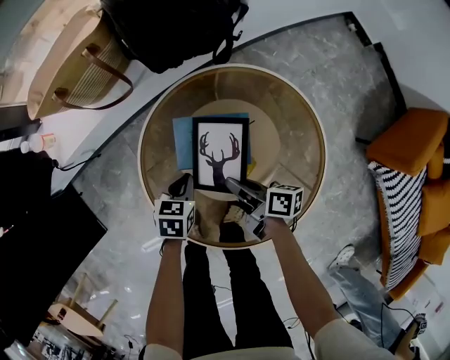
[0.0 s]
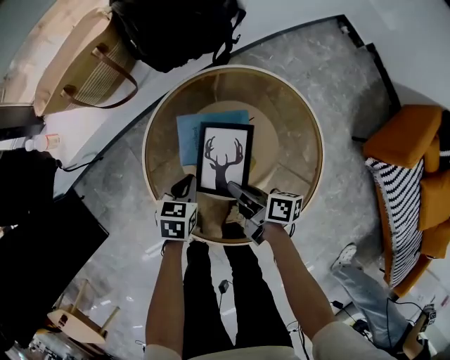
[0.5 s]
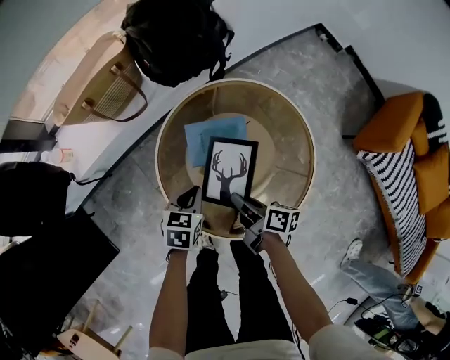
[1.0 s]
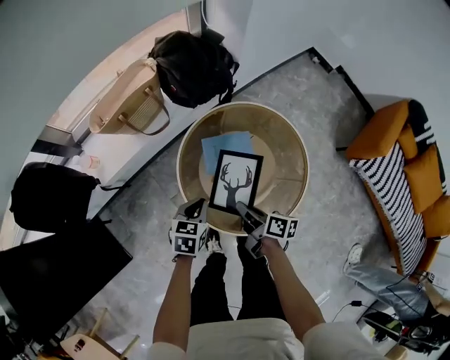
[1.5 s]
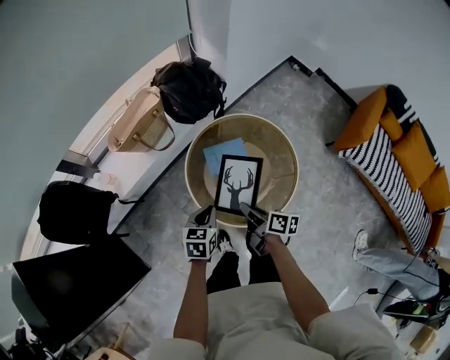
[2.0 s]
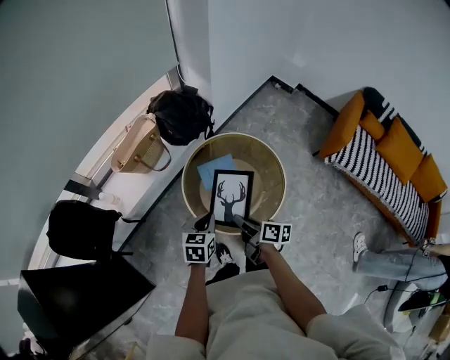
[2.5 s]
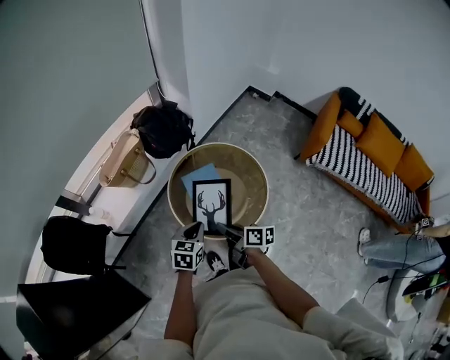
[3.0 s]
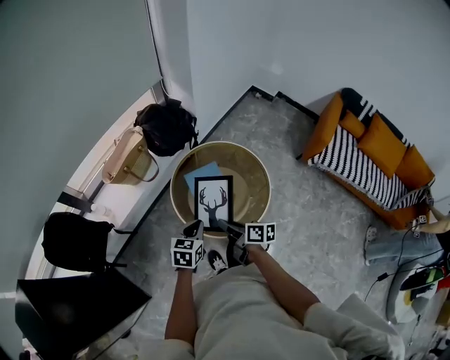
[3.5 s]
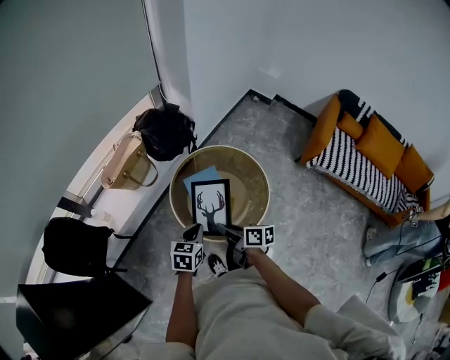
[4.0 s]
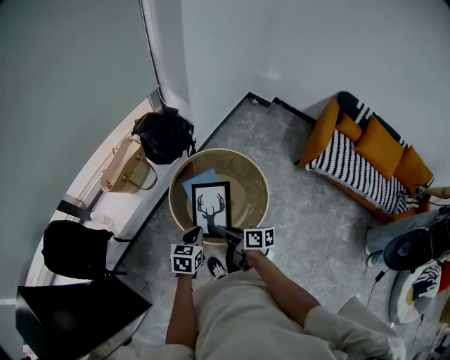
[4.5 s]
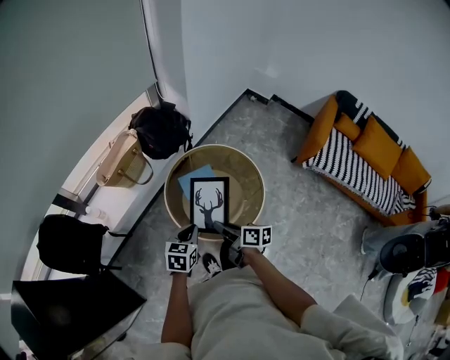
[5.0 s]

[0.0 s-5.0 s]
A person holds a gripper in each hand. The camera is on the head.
0.0 to 2.5 s: The grippers both shift upward and backward by about 40 cm. The left gripper rotates roughly 30 degrees. The right gripper turns by about 30 degrees.
2.5 to 5.0 s: There are only small adjustments of the grippers.

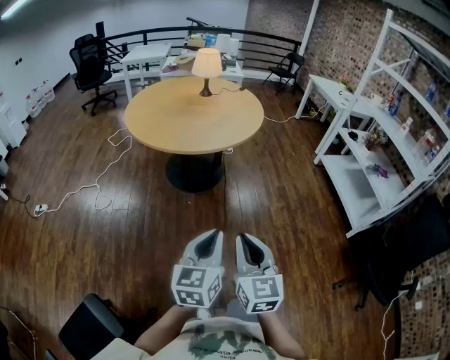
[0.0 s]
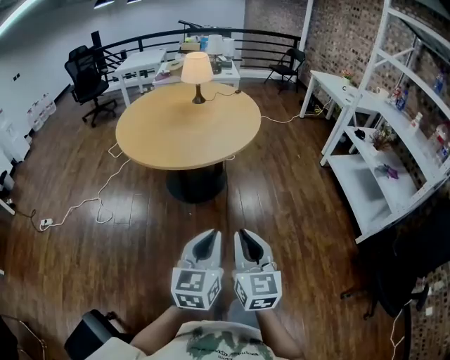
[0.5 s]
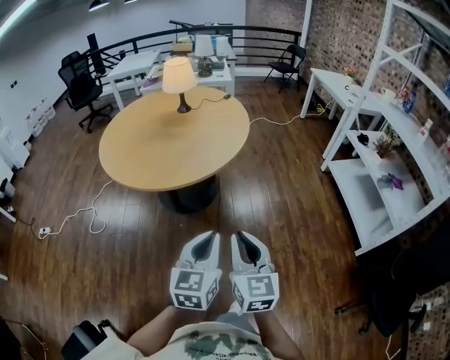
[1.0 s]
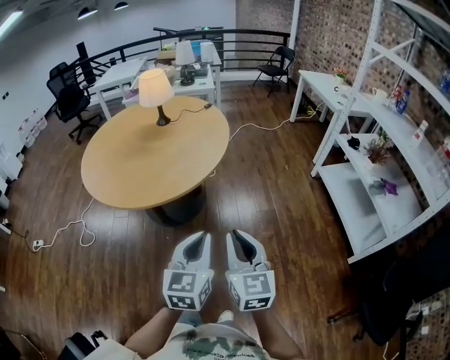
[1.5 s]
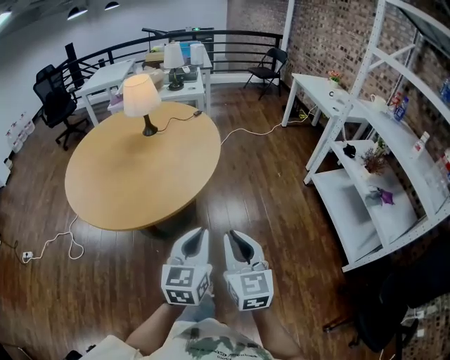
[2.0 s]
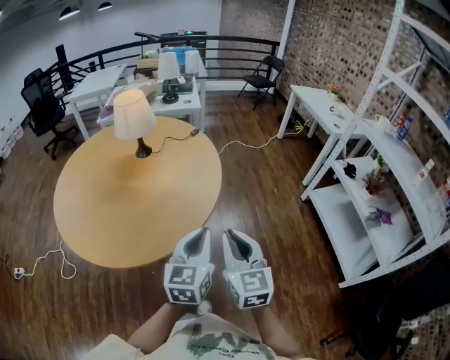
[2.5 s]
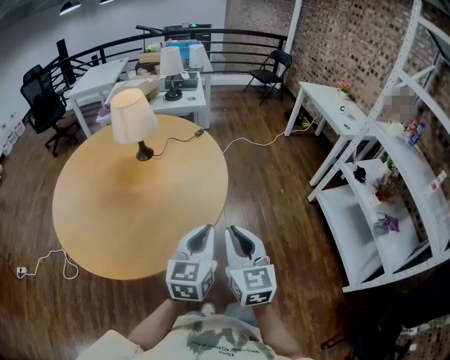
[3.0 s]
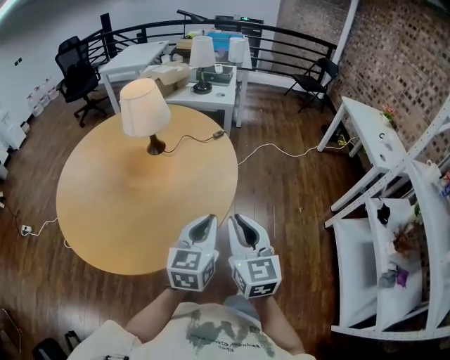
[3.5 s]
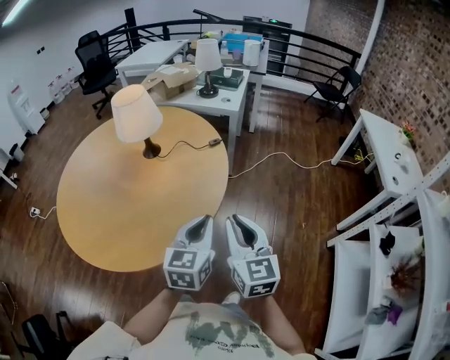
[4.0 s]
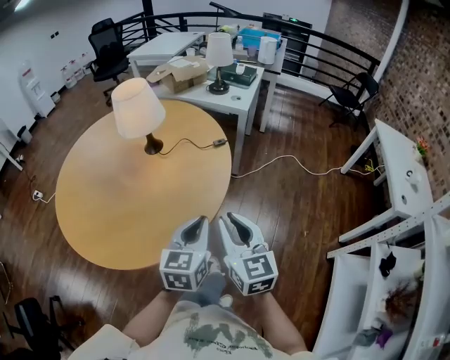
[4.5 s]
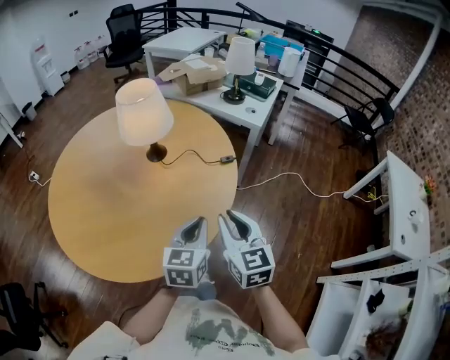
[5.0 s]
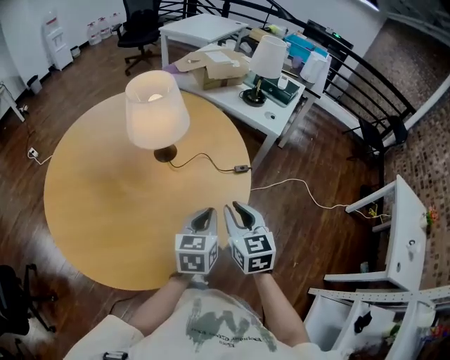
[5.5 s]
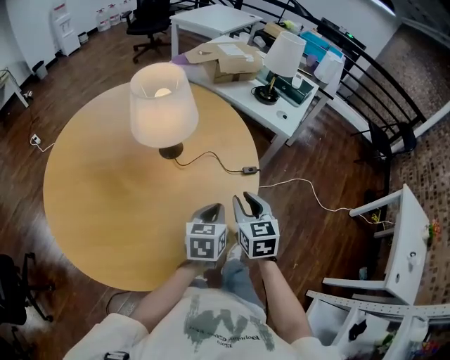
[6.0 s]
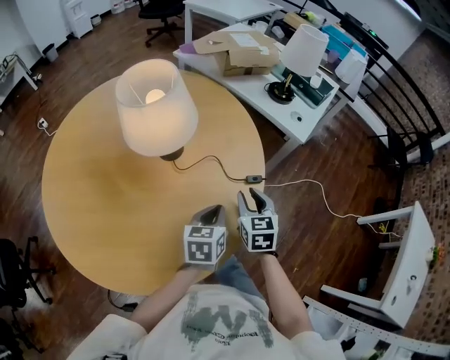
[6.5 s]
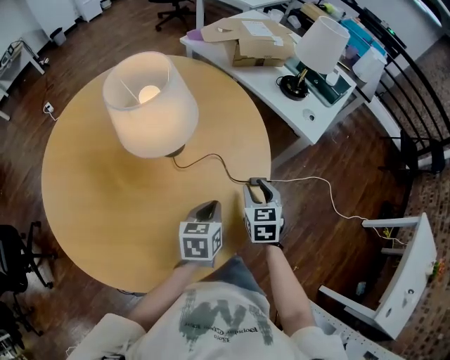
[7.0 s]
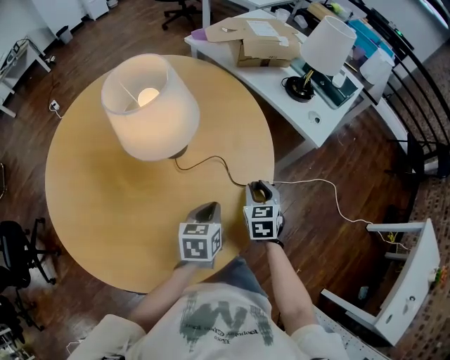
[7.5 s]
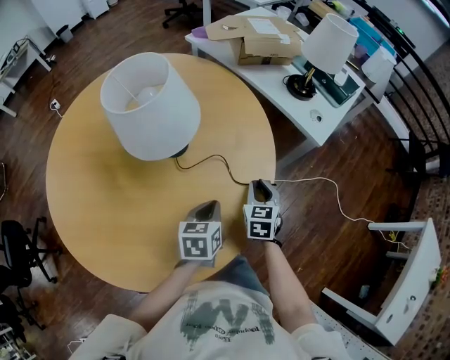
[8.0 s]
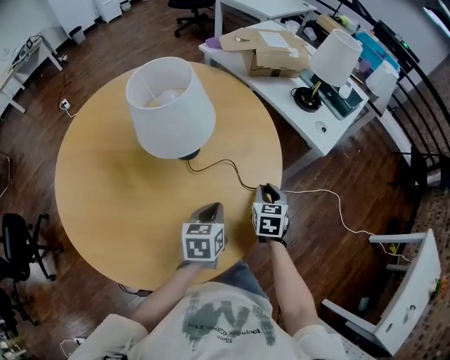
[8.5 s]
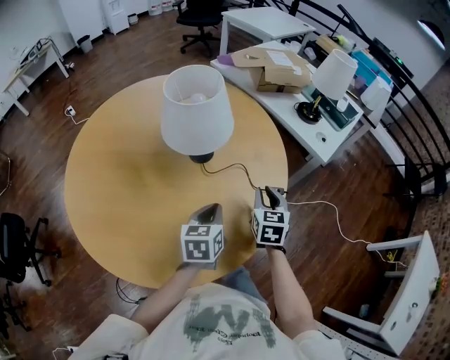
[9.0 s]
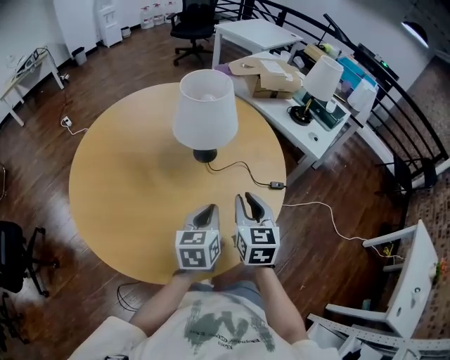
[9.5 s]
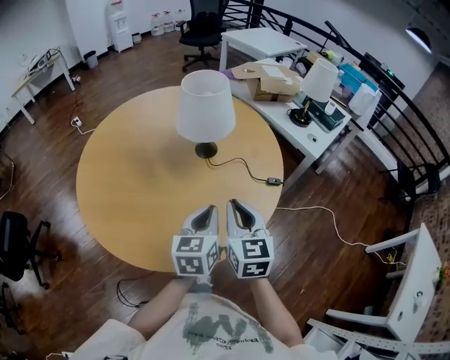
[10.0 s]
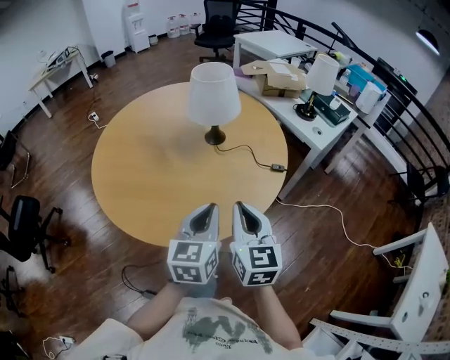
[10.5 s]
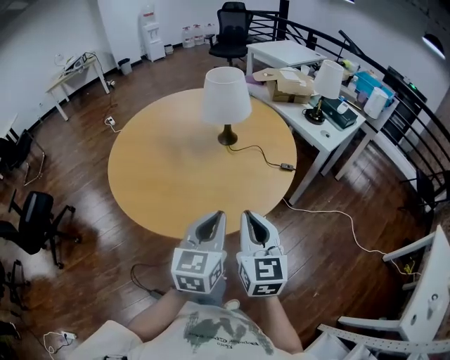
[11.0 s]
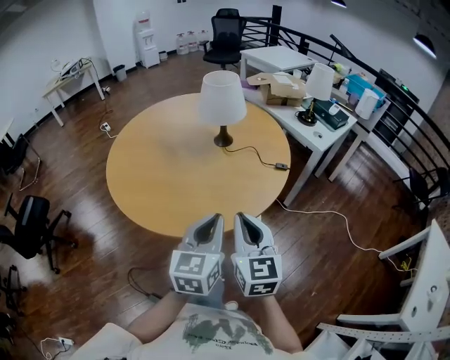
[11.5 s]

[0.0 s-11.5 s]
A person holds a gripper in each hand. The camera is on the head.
0.0 to 2.0 s: Both grippers are carried forward and to the right, approximately 50 cm.
2.0 to 4.0 s: The two grippers travel together, forward, approximately 40 cm. The right gripper changes its angle by about 20 degrees.
4.0 to 6.0 s: Both grippers travel together forward and downward, approximately 35 cm. The right gripper swivels roughly 30 degrees. Meanwhile the left gripper changes its angle by approximately 30 degrees.
6.0 to 7.5 s: The right gripper shifts roughly 20 cm forward and downward. Meanwhile the left gripper travels forward and downward by about 10 cm.
7.5 to 9.5 s: Both grippers travel together upward, to the left and backward, about 20 cm. The right gripper rotates approximately 20 degrees.
9.5 to 11.5 s: The right gripper travels backward by some 25 cm. Meanwhile the left gripper goes approximately 30 cm backward and upward, and turns by about 20 degrees.

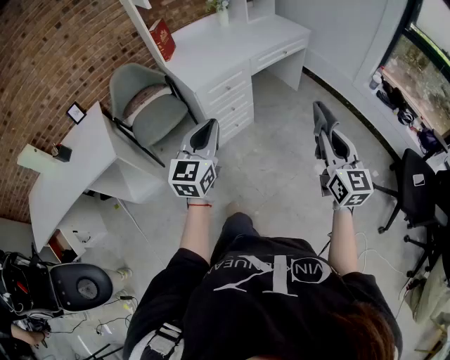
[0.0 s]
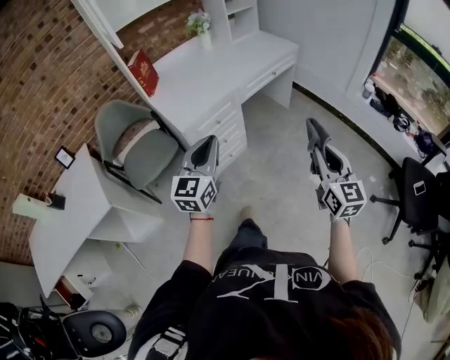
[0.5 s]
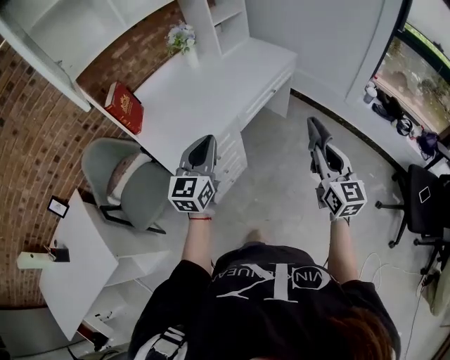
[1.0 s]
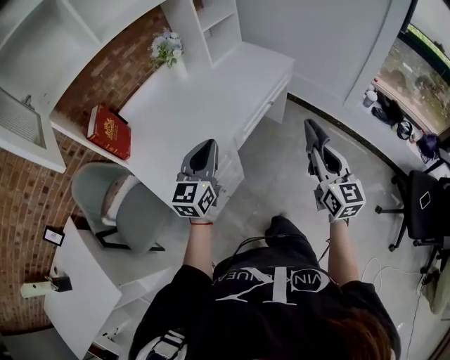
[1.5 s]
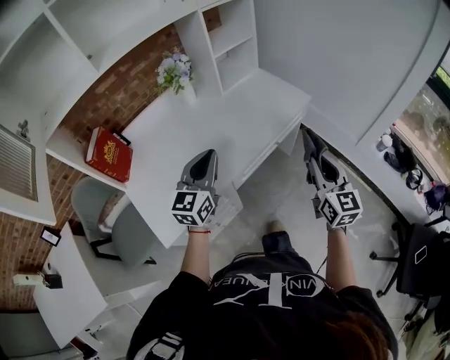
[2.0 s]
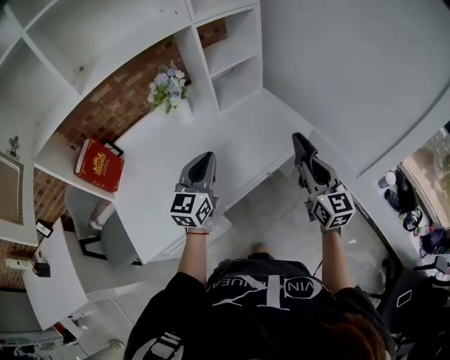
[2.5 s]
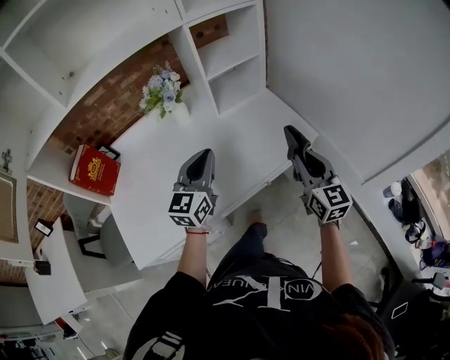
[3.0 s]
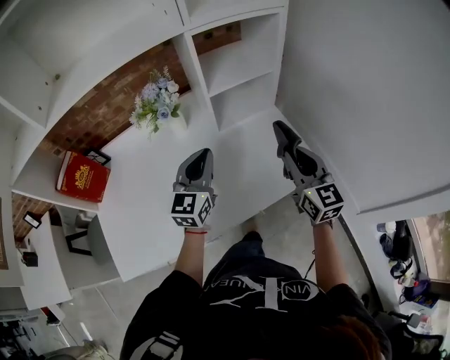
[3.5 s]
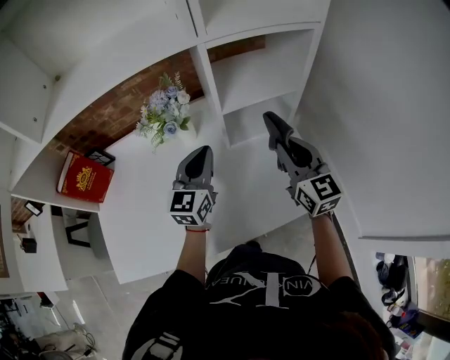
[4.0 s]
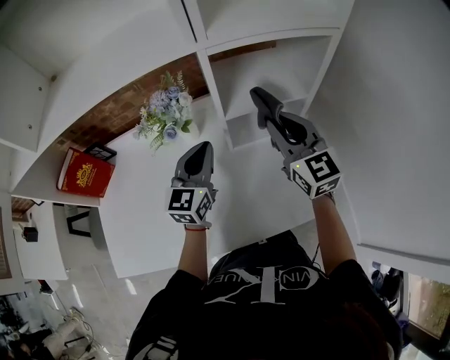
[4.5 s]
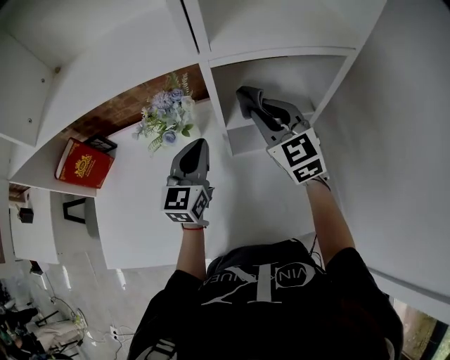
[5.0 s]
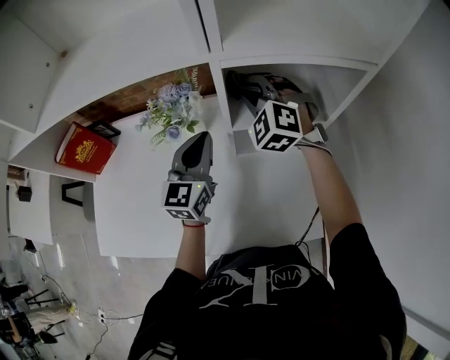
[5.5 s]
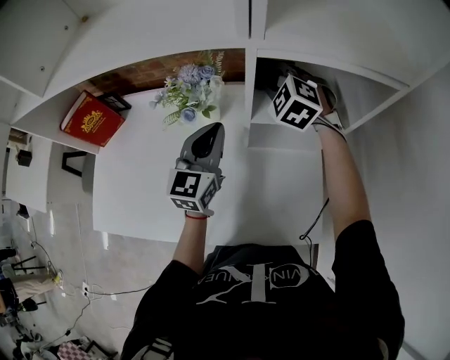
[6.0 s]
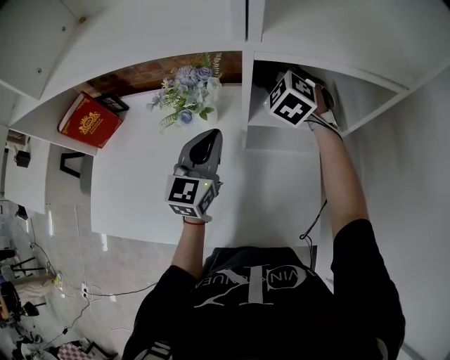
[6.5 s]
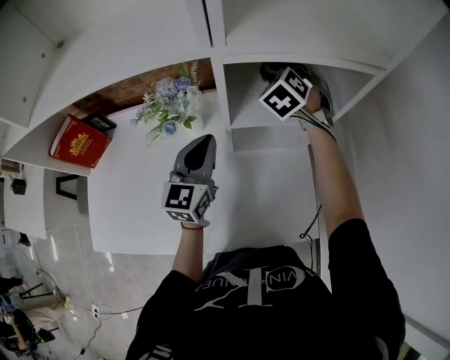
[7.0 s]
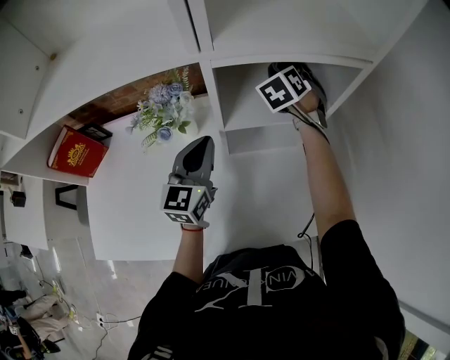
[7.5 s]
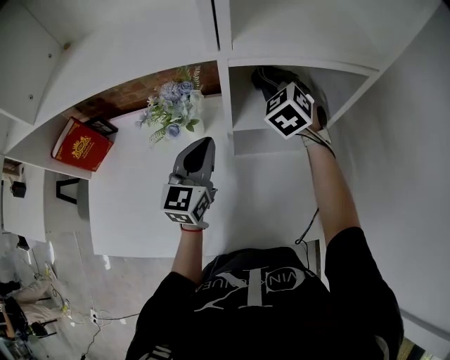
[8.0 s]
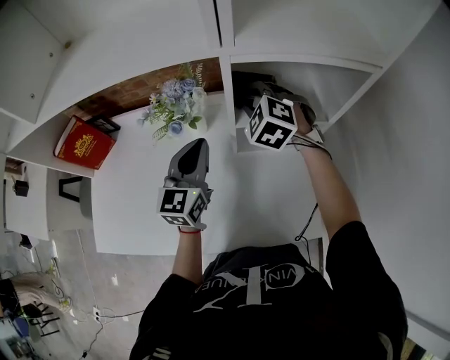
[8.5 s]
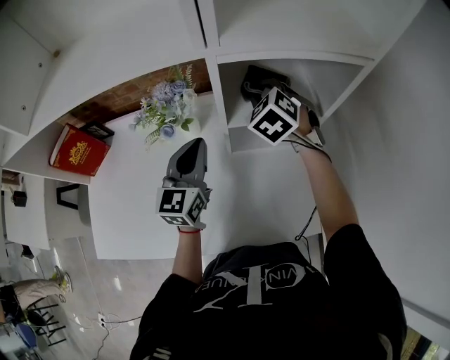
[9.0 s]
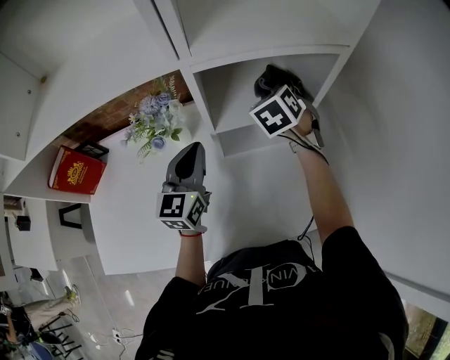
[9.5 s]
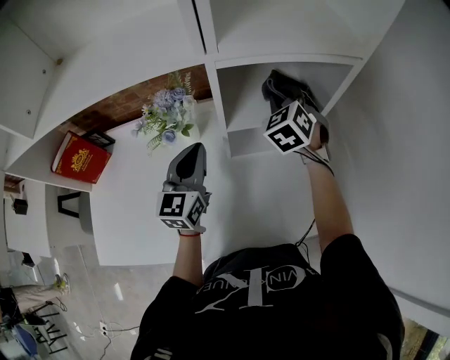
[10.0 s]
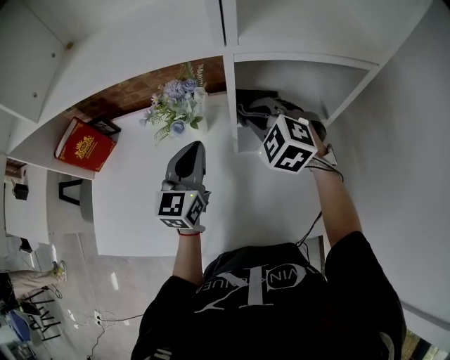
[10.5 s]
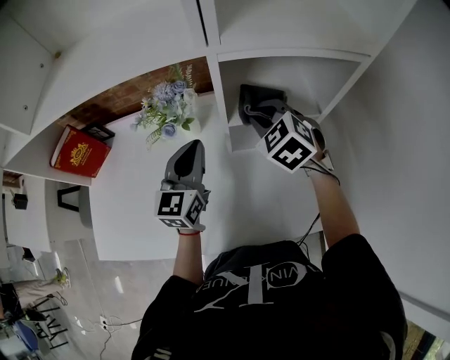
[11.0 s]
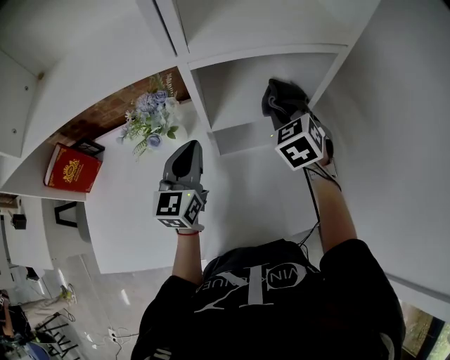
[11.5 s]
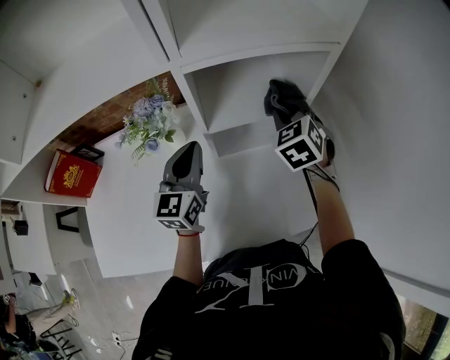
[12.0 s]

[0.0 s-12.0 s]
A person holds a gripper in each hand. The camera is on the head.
0.0 to 2.0 s: Both grippers are carried forward, approximately 60 cm.
2.0 to 4.0 s: The right gripper ends up roughly 50 cm from where it was, and changes its angle by about 40 degrees. Meanwhile the left gripper moves about 35 cm, and changes its angle by about 30 degrees.
4.0 to 6.0 s: The left gripper shifts approximately 5 cm forward. The right gripper goes roughly 30 cm forward and to the left, and rotates around the line of its fingers by roughly 60 degrees, counterclockwise from behind.
6.0 to 8.0 s: The right gripper shifts about 5 cm to the right, and rotates about 30 degrees.
8.0 to 10.0 s: The right gripper moves to the right, roughly 5 cm.
10.0 to 12.0 s: The right gripper travels backward by some 5 cm, and travels to the left and back again, some 10 cm each way.
